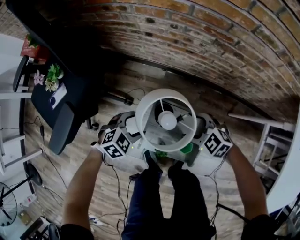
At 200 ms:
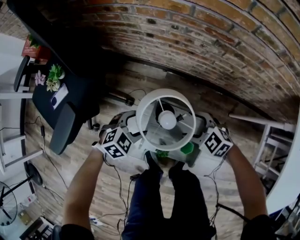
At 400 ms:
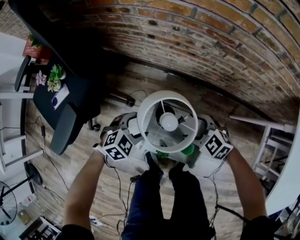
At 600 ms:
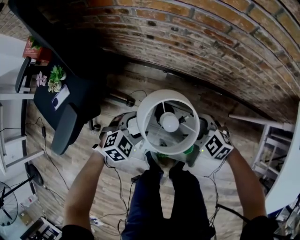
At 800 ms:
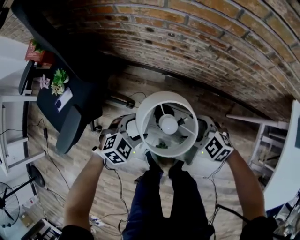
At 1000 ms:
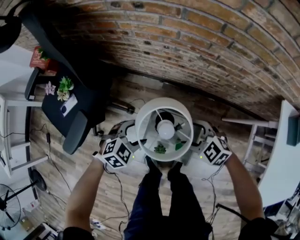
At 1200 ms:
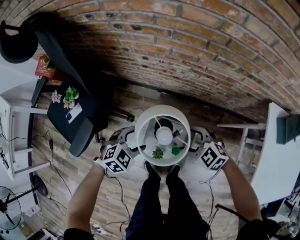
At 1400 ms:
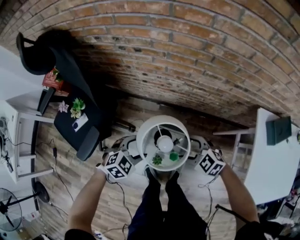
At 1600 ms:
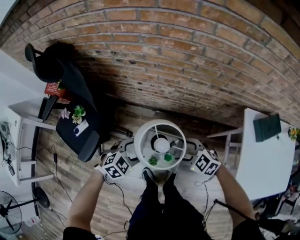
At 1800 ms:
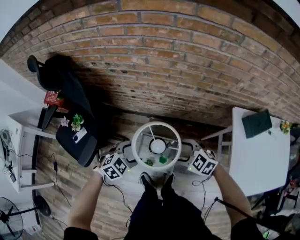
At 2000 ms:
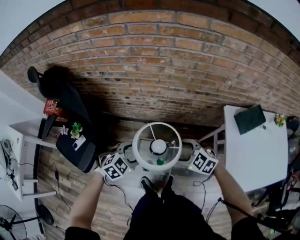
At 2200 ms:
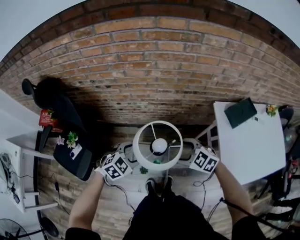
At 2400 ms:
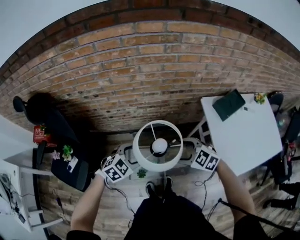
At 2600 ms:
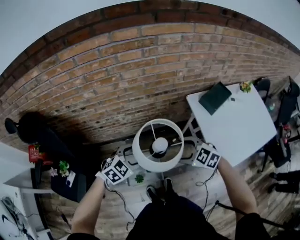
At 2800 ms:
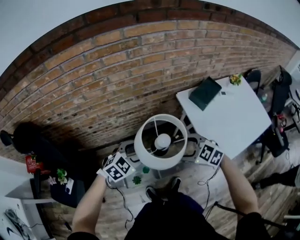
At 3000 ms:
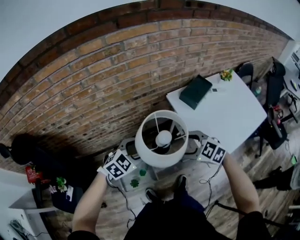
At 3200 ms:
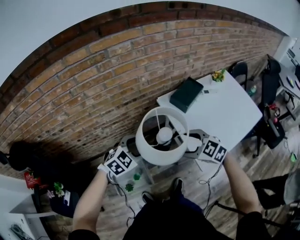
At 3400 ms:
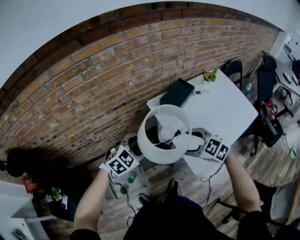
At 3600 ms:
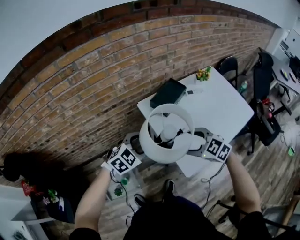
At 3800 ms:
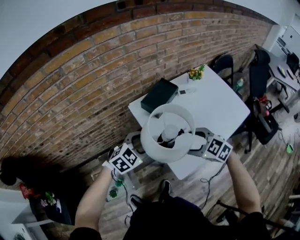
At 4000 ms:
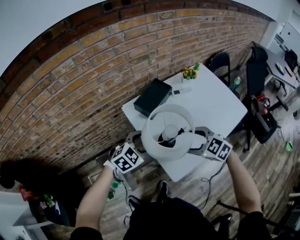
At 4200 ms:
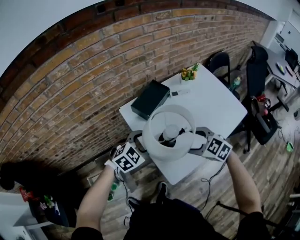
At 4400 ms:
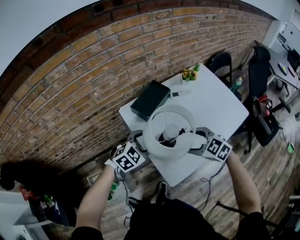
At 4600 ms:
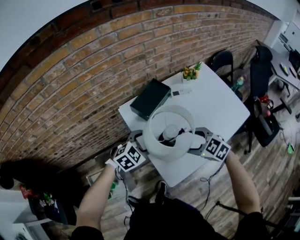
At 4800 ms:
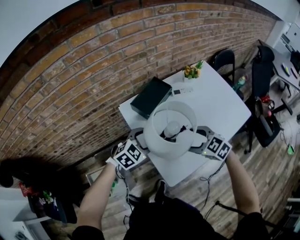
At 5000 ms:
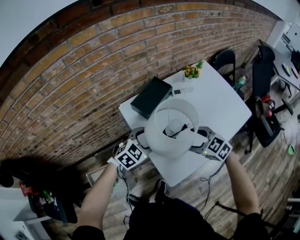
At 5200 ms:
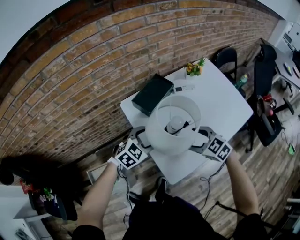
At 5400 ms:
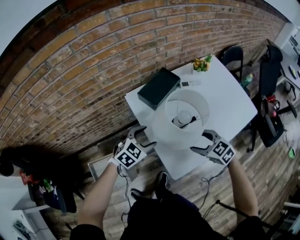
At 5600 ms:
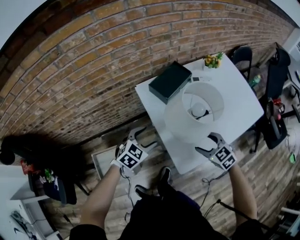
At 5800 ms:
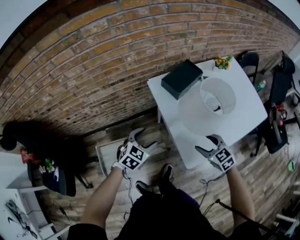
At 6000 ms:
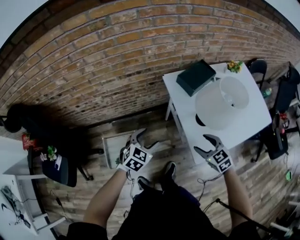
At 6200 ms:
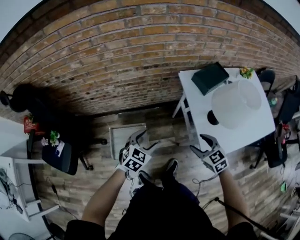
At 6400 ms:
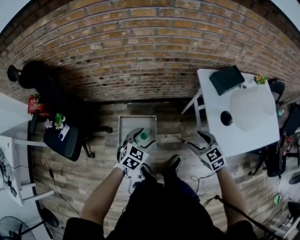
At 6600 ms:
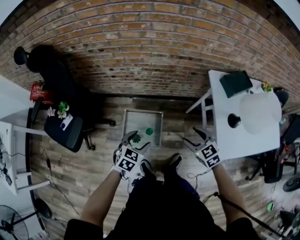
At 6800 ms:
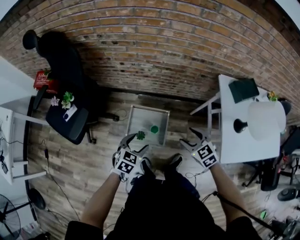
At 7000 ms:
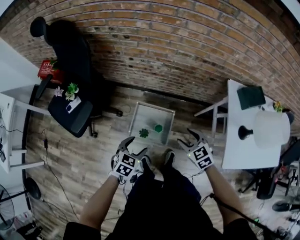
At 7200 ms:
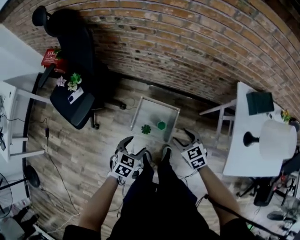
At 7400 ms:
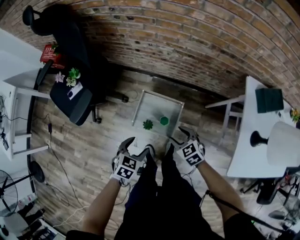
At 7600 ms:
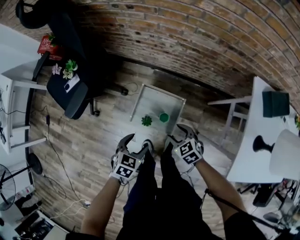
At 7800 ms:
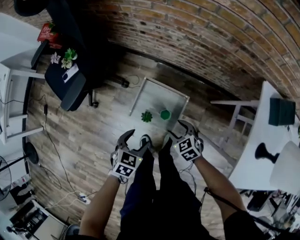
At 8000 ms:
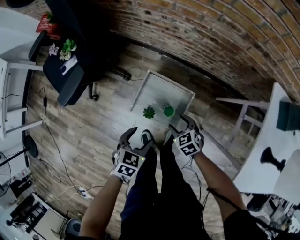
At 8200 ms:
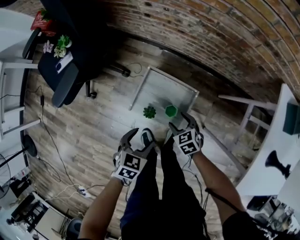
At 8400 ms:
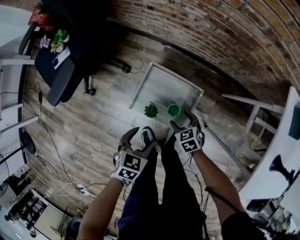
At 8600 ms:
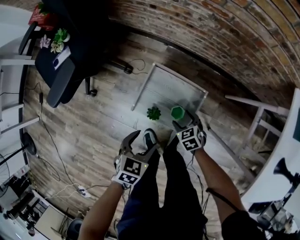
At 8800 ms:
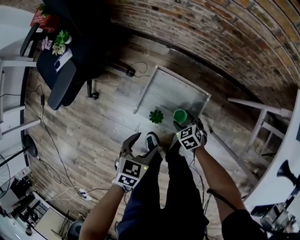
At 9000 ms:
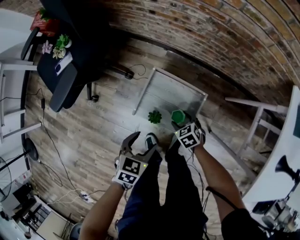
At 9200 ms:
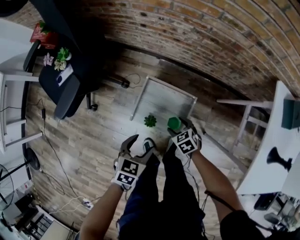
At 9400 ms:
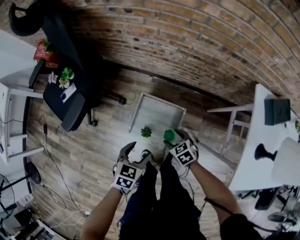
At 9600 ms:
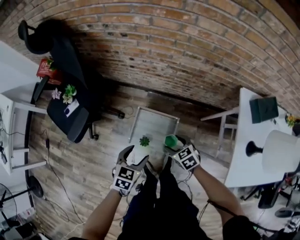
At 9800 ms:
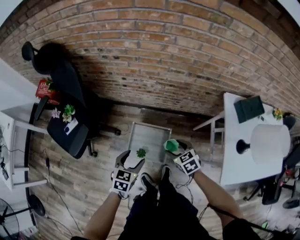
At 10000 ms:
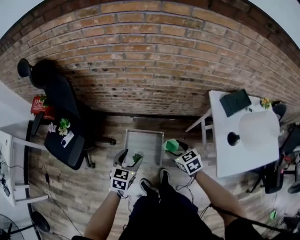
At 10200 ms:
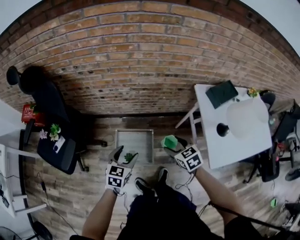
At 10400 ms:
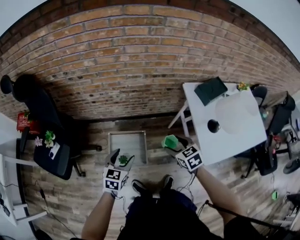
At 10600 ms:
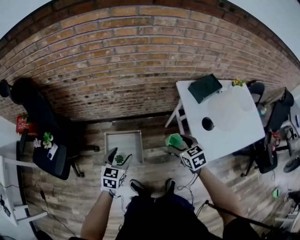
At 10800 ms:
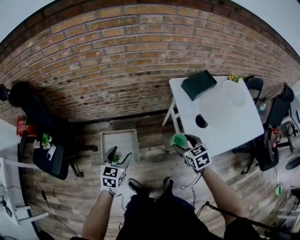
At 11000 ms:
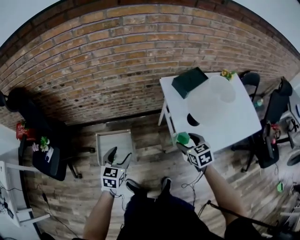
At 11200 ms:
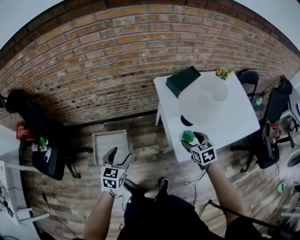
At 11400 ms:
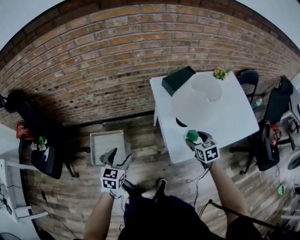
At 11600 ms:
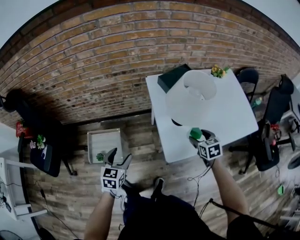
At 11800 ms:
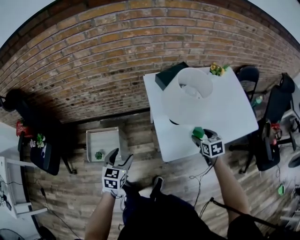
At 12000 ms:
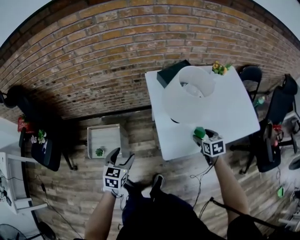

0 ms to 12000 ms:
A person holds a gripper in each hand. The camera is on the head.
0 ms to 1600 ms: The two grippers go some 35 cm upward.
1600 ms to 3000 ms: The left gripper shifts by approximately 35 cm, and swivels approximately 30 degrees. Meanwhile the right gripper moves some 35 cm, and rotates some 30 degrees.
3000 ms to 4400 ms: The grippers both shift to the right by roughly 35 cm.
4400 ms to 6000 ms: The right gripper moves to the left, backward and downward, approximately 20 cm. The left gripper is displaced to the left and backward by approximately 25 cm, and swivels approximately 30 degrees.
6000 ms to 7600 ms: The right gripper changes place by roughly 50 cm, and rotates some 40 degrees, while the left gripper ends up some 40 cm from where it was, and changes its angle by roughly 50 degrees.
7600 ms to 9000 ms: The left gripper heads downward, covering about 15 cm, while the right gripper shifts roughly 25 cm downward.
9000 ms to 10400 ms: The left gripper shifts about 30 cm upward, and swivels roughly 30 degrees. Meanwhile the right gripper goes about 50 cm upward, and swivels some 40 degrees.
10400 ms to 12000 ms: The right gripper goes roughly 50 cm to the right, and turns by about 20 degrees. The left gripper is displaced to the right by roughly 30 cm.

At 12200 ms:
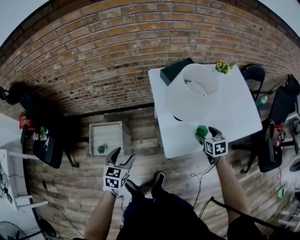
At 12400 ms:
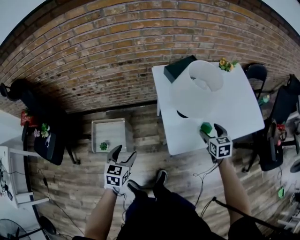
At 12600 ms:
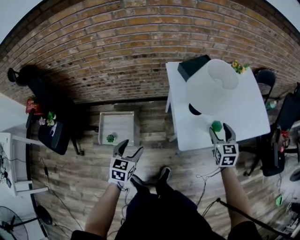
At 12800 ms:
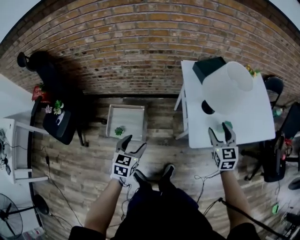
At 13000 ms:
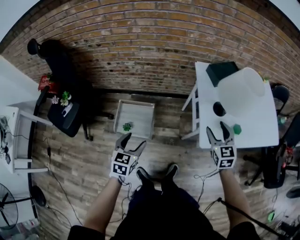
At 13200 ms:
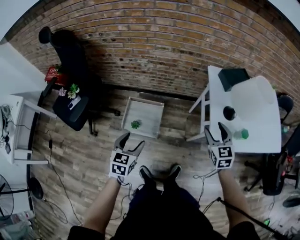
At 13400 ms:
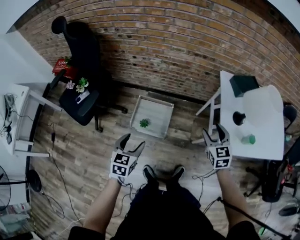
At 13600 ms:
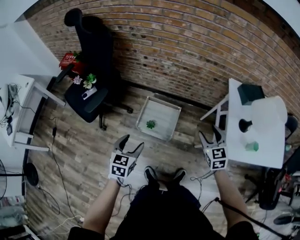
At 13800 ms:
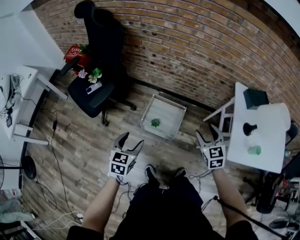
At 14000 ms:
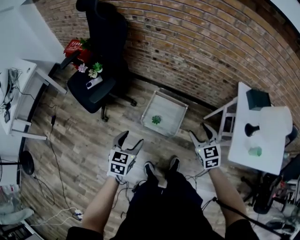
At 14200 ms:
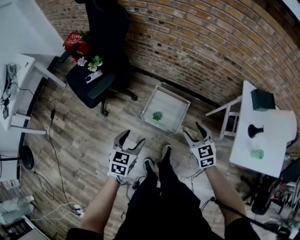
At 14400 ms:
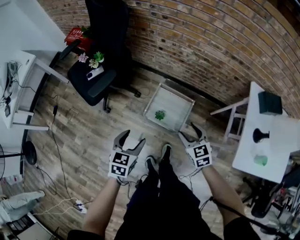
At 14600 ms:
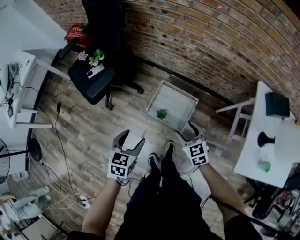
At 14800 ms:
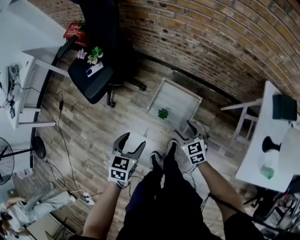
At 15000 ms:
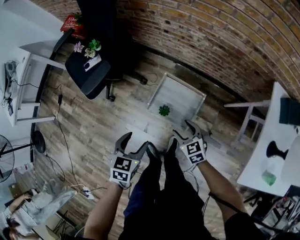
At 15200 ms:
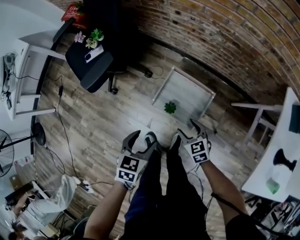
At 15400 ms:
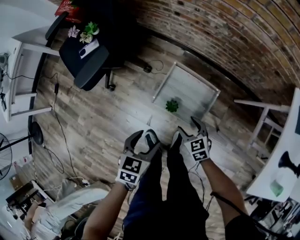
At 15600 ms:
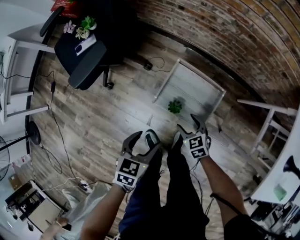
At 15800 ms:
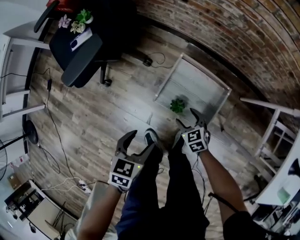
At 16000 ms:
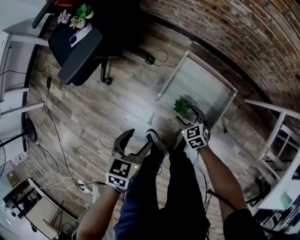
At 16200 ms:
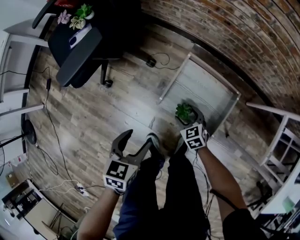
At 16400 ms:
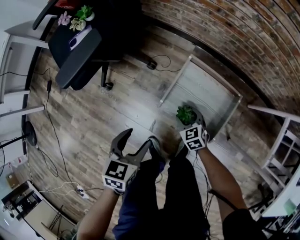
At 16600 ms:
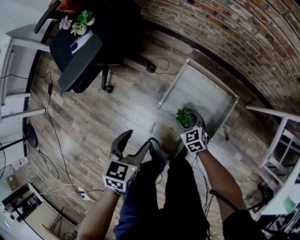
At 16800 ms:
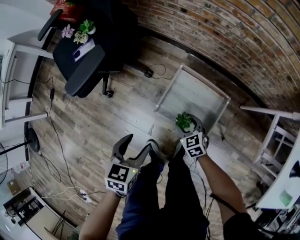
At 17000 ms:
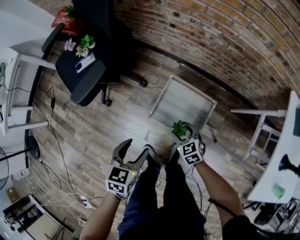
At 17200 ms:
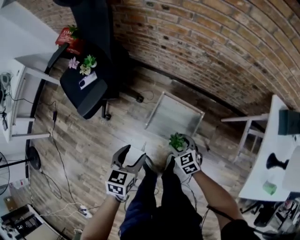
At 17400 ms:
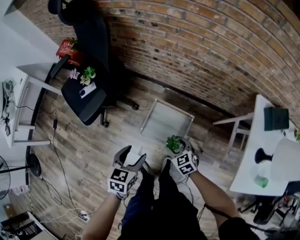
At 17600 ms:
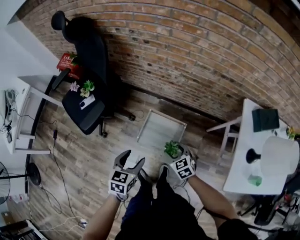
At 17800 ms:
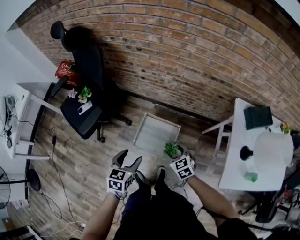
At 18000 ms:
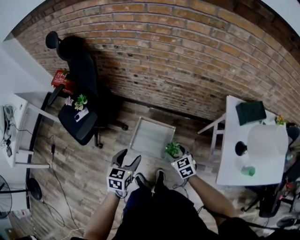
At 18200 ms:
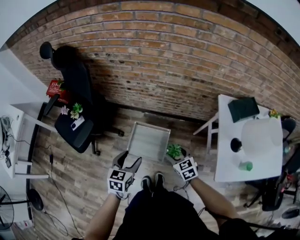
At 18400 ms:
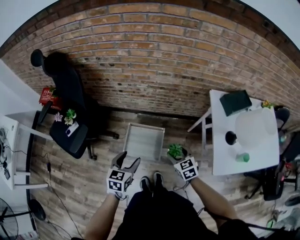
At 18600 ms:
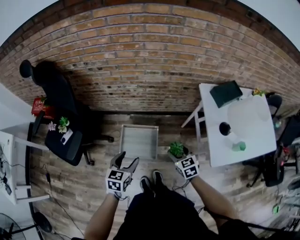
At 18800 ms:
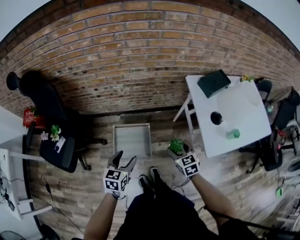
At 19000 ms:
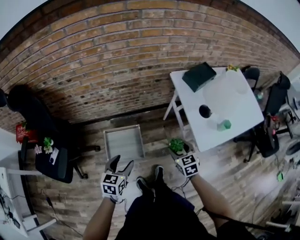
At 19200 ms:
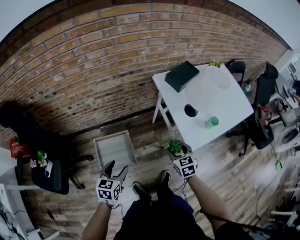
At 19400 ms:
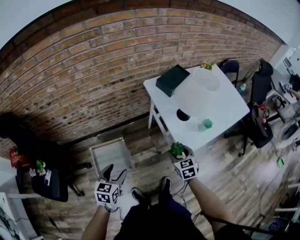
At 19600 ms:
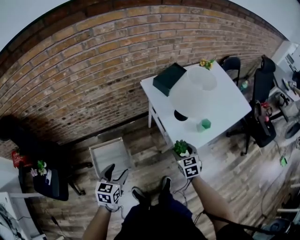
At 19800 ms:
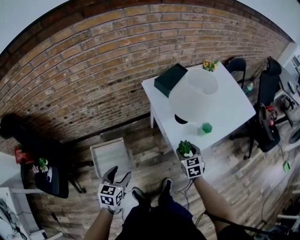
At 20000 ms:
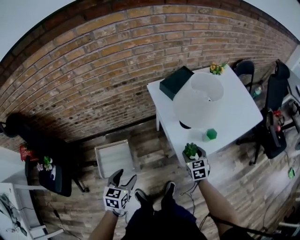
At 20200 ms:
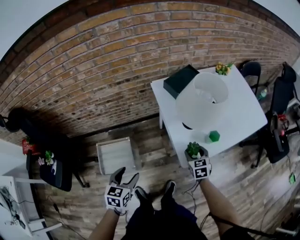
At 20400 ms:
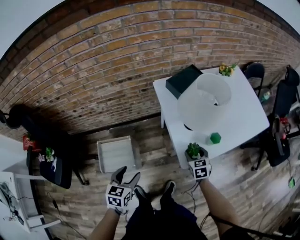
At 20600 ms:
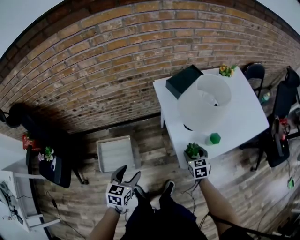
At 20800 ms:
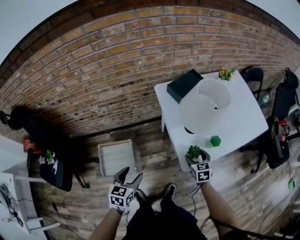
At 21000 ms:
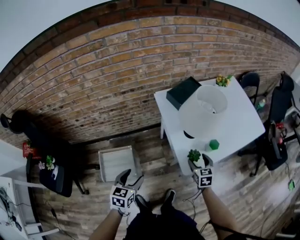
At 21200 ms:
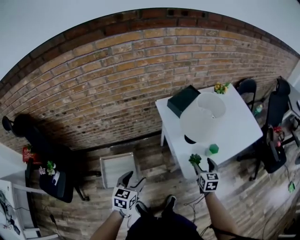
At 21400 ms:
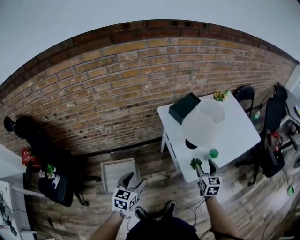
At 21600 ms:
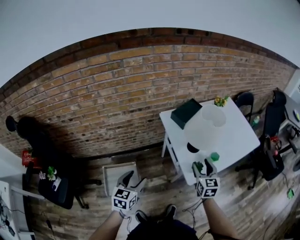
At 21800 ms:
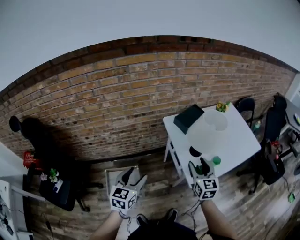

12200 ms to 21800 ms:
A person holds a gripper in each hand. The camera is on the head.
12200 ms to 13800 ms: The pair of grippers is taken about 50 cm. The left gripper rotates approximately 20 degrees, while the right gripper changes its angle by approximately 40 degrees.
13800 ms to 15400 ms: The right gripper moves downward, roughly 40 cm, and rotates approximately 30 degrees, while the left gripper is displaced downward and forward by some 25 cm.
15400 ms to 17000 ms: The left gripper travels downward and back again, roughly 15 cm each way. The right gripper reaches about 20 cm downward, then returns.
17000 ms to 18600 ms: Both grippers travel together upward, approximately 30 cm. The right gripper rotates roughly 30 degrees. The left gripper rotates approximately 20 degrees.
18600 ms to 20200 ms: The right gripper moves about 35 cm, and turns by approximately 30 degrees; the left gripper changes place by roughly 25 cm.
20200 ms to 21800 ms: The right gripper shifts about 25 cm upward, and changes its angle by approximately 30 degrees; the left gripper goes some 15 cm upward and to the left.

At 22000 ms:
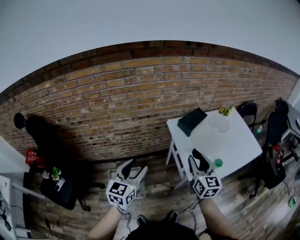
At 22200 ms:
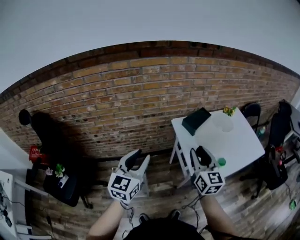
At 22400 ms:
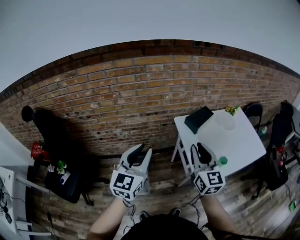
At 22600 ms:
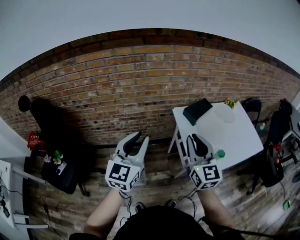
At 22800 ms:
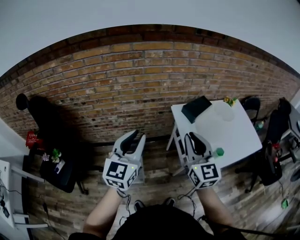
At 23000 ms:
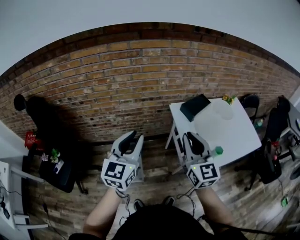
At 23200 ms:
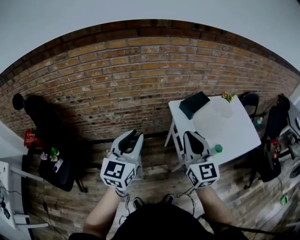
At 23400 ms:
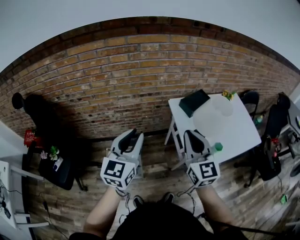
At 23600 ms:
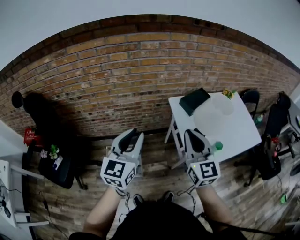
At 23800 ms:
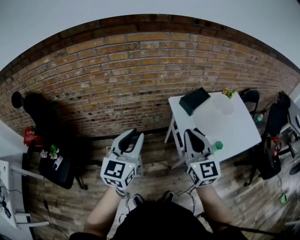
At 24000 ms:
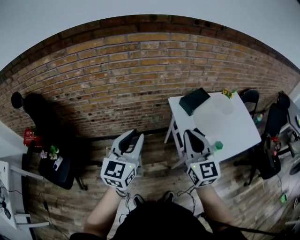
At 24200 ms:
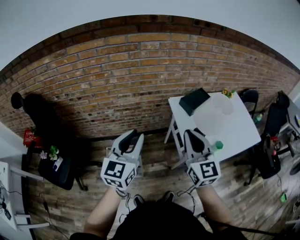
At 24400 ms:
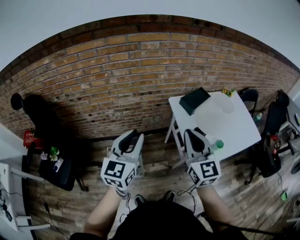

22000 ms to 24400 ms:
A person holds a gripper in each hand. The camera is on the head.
22000 ms to 23200 ms: The right gripper travels upward and to the left by roughly 15 cm, and closes up, while the left gripper goes roughly 10 cm upward, and closes its fingers.
23200 ms to 24400 ms: The grippers make only small movements.
